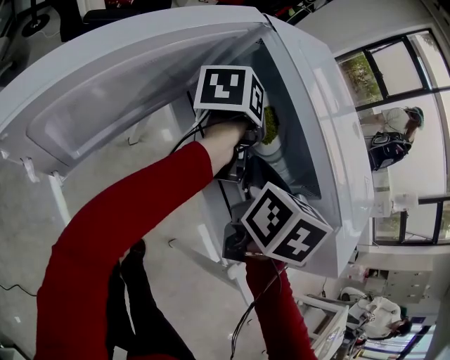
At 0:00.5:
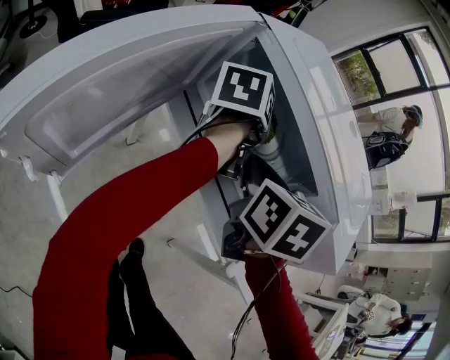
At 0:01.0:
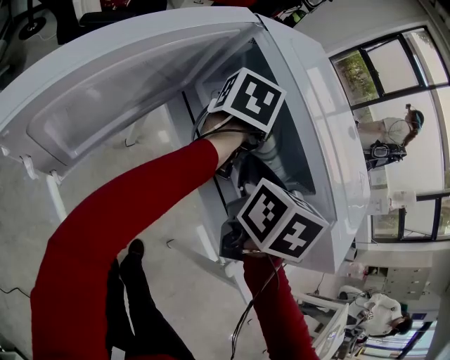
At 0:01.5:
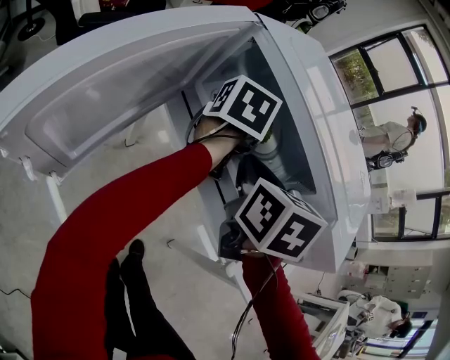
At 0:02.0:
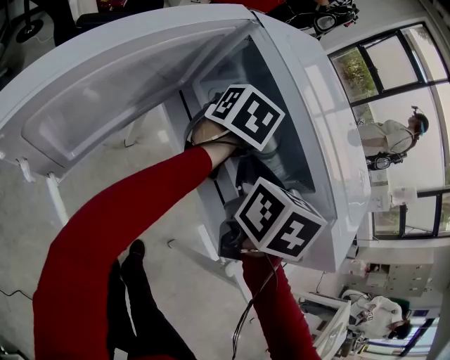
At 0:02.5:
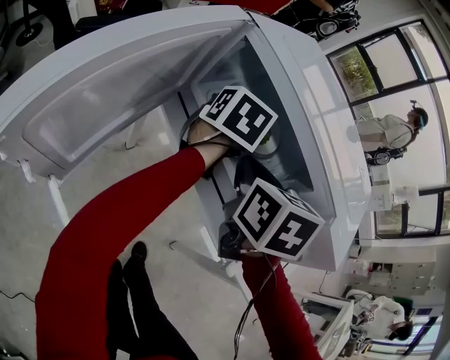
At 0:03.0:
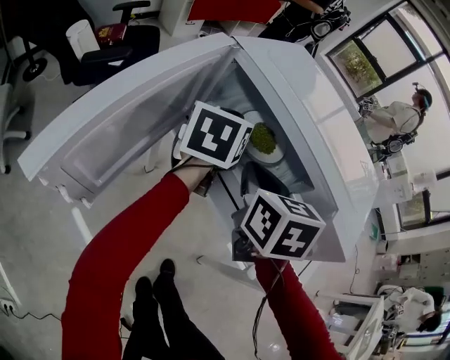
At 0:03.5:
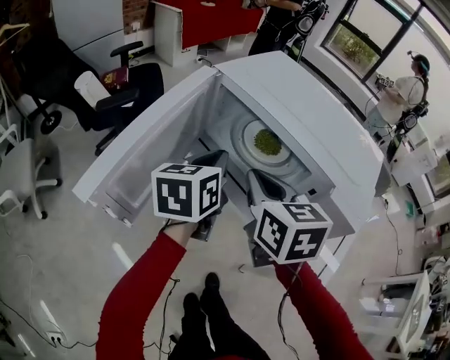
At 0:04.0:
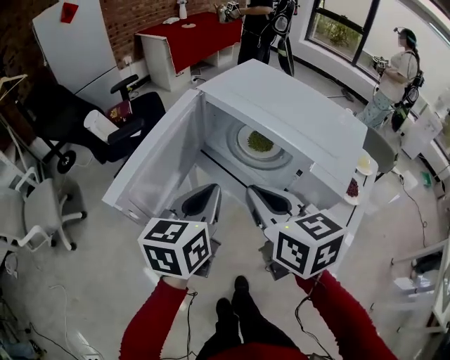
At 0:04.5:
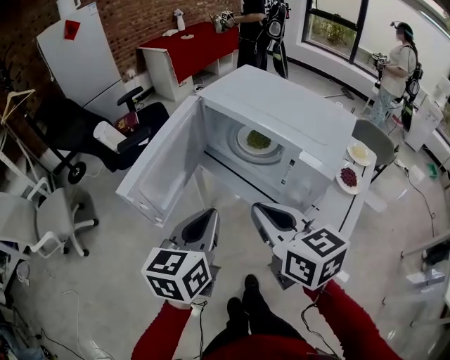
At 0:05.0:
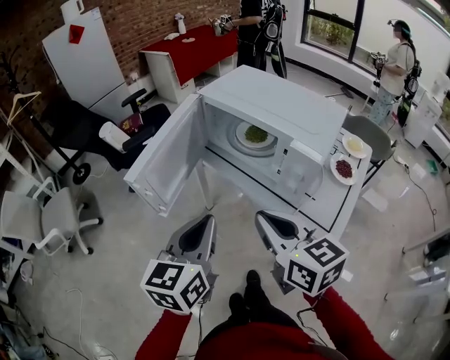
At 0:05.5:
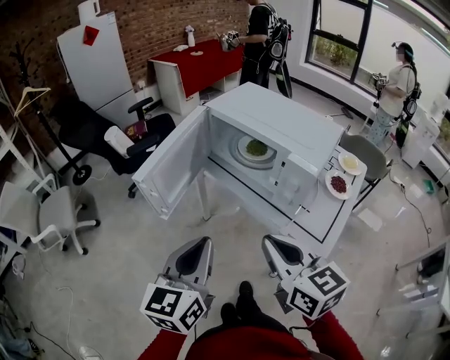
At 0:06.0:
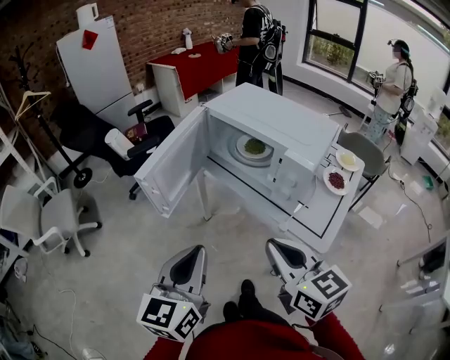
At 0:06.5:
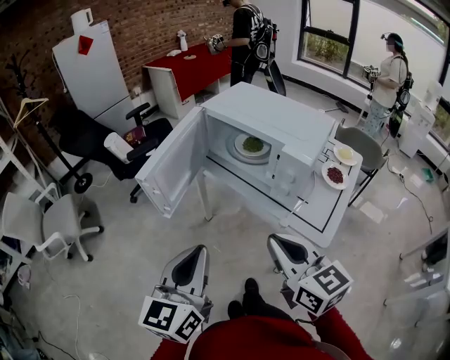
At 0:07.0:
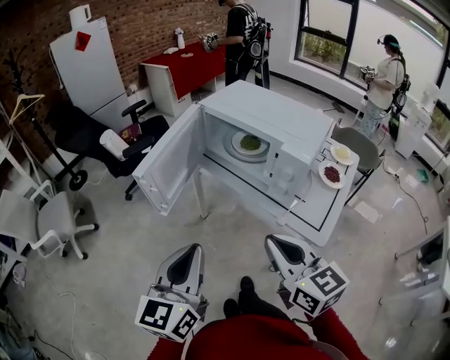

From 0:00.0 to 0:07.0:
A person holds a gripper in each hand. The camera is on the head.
From 0:00.0 to 0:02.0: The left gripper rotates roughly 40 degrees, and opens its fingers.
From 0:02.0 to 0:03.5: The right gripper shifts some 5 cm upward and backward, while the left gripper goes roughly 15 cm backward, to the left and upward, and closes.
From 0:03.5 to 0:05.0: Both grippers travel together backward, roughly 25 cm.
From 0:05.0 to 0:07.0: Both grippers travel together backward, roughly 10 cm.

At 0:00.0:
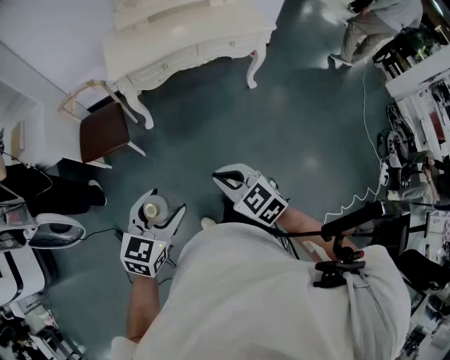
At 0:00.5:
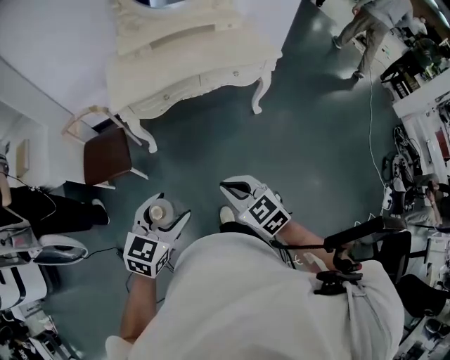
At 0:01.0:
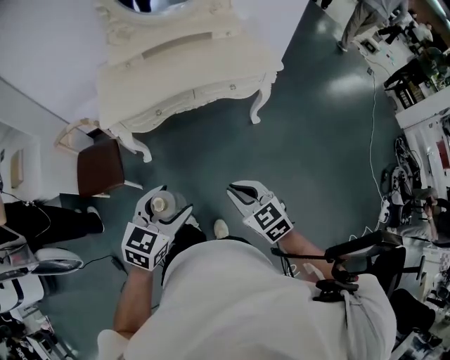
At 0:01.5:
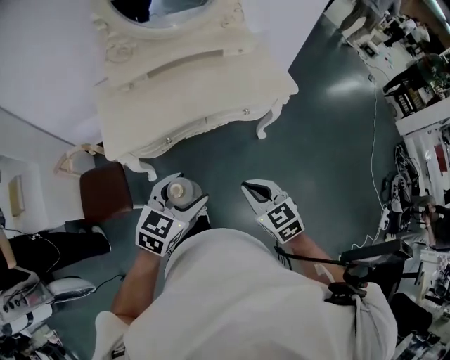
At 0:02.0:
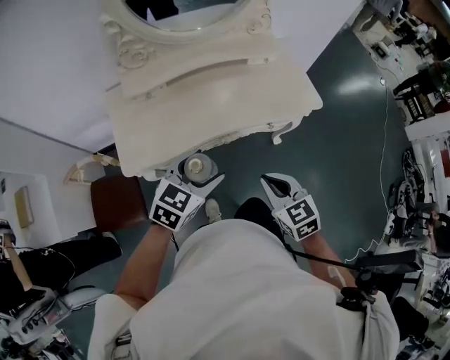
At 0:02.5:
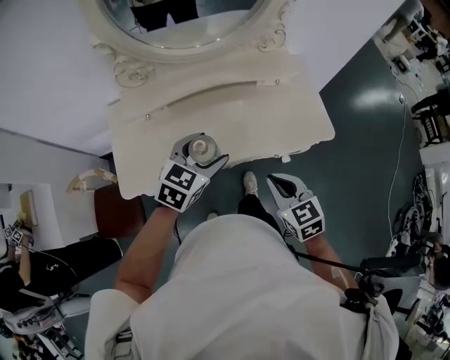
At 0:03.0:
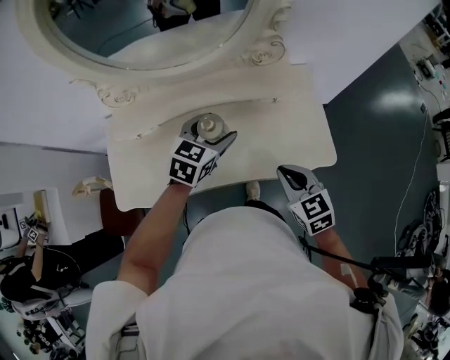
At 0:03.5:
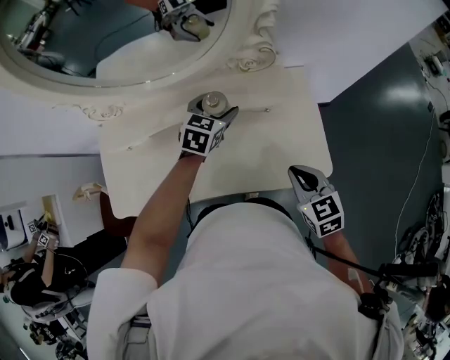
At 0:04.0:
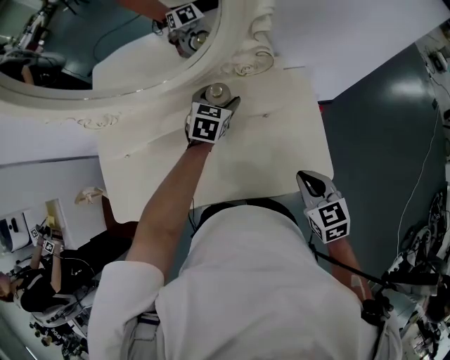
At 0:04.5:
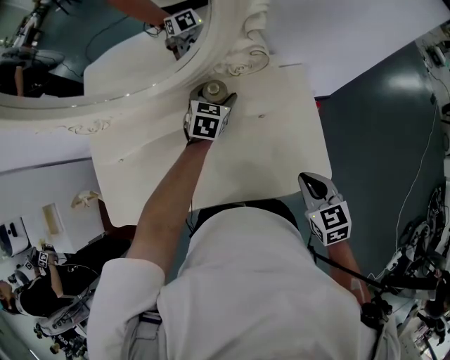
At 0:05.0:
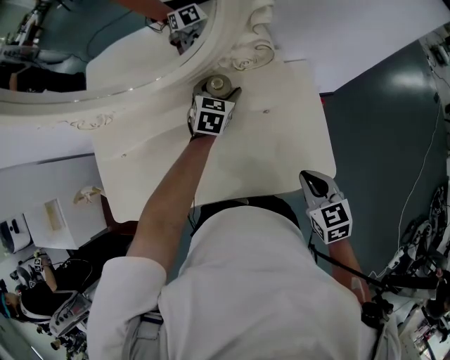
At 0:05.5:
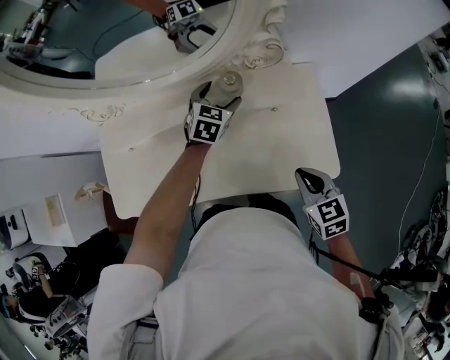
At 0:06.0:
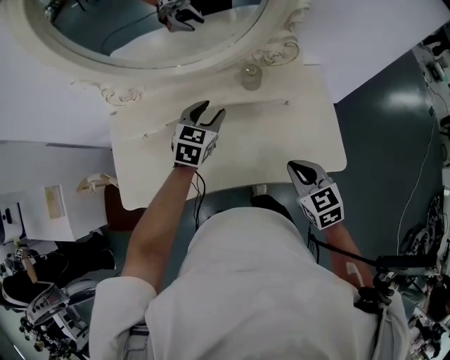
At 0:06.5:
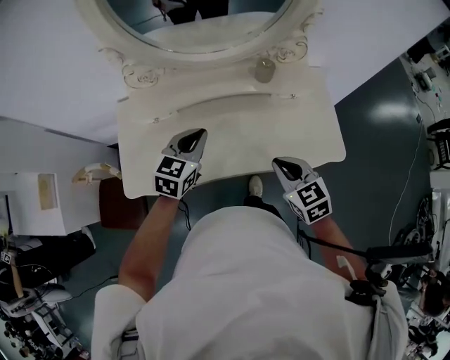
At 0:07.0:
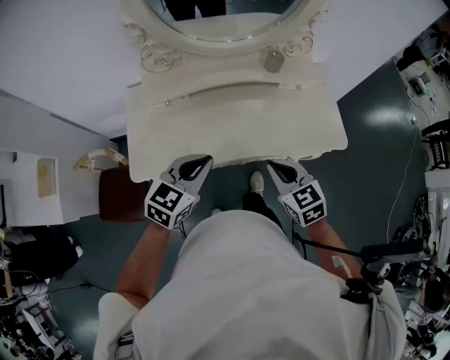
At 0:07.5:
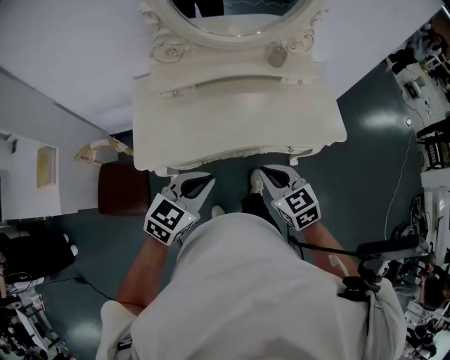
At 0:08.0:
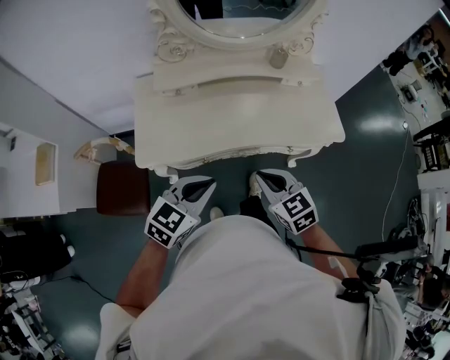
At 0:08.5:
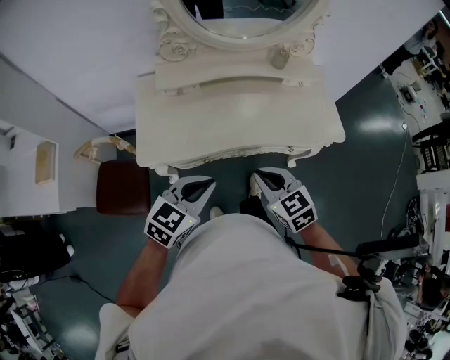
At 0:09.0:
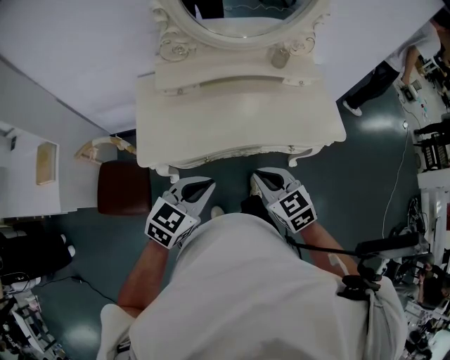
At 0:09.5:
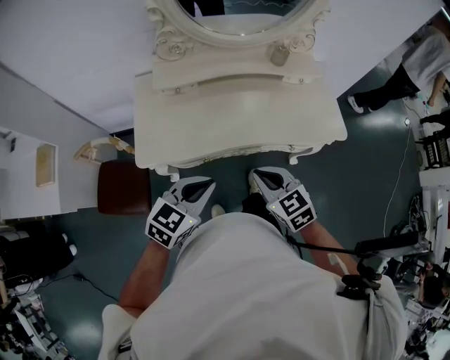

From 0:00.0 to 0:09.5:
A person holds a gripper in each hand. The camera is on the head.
From 0:00.0 to 0:02.0: The pair of grippers is taken forward, roughly 50 cm. The right gripper swivels approximately 20 degrees.
From 0:02.0 to 0:04.0: Both grippers are carried forward and to the right, roughly 50 cm. The left gripper rotates approximately 30 degrees.
From 0:04.0 to 0:05.5: There are only small adjustments of the grippers.
From 0:05.5 to 0:07.5: The left gripper is displaced backward and to the left by roughly 60 cm, rotates roughly 20 degrees, and closes its fingers; the right gripper goes roughly 40 cm to the left and backward.
From 0:07.5 to 0:09.5: The grippers make only small movements.

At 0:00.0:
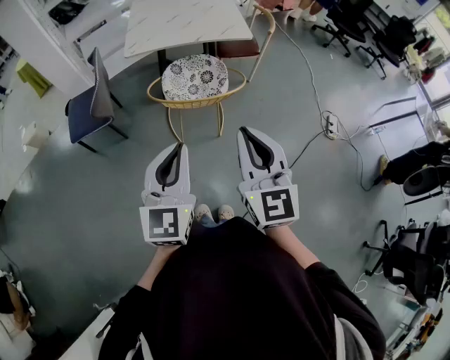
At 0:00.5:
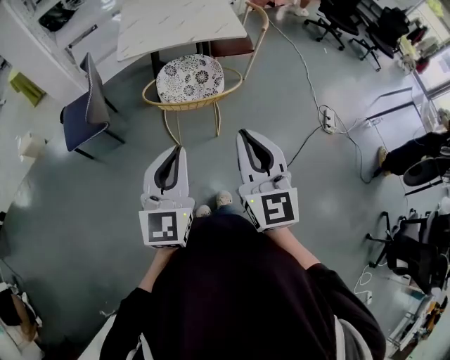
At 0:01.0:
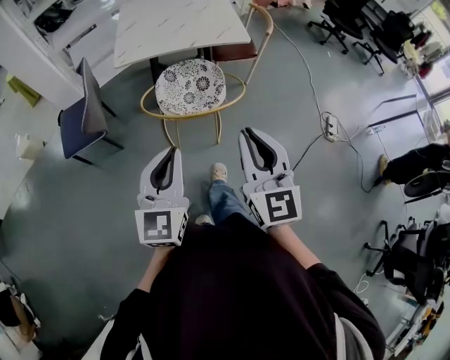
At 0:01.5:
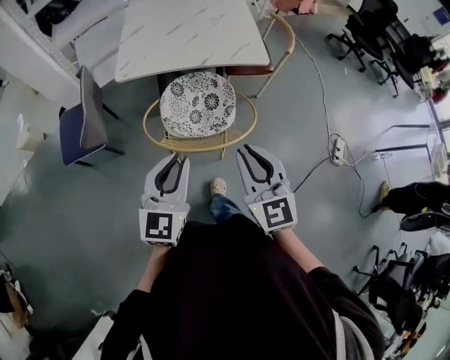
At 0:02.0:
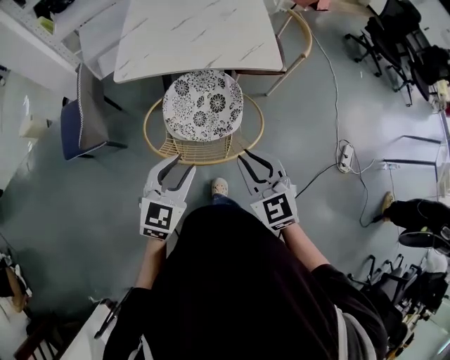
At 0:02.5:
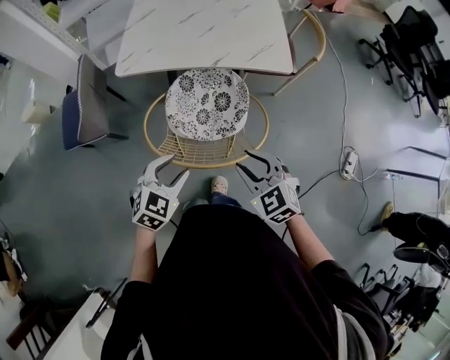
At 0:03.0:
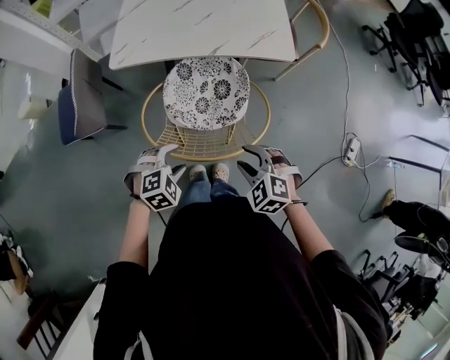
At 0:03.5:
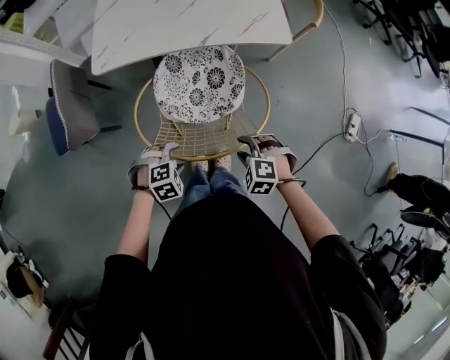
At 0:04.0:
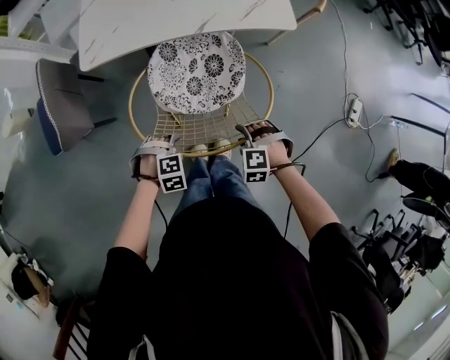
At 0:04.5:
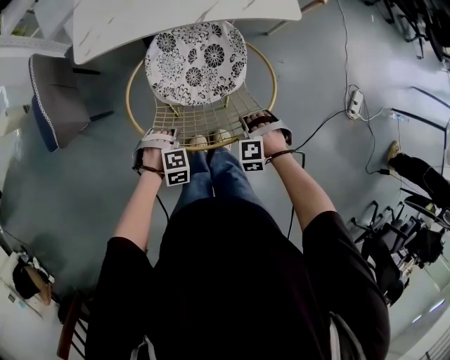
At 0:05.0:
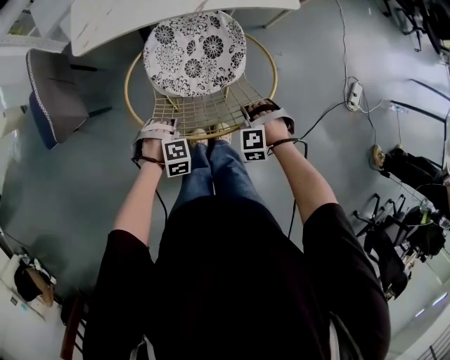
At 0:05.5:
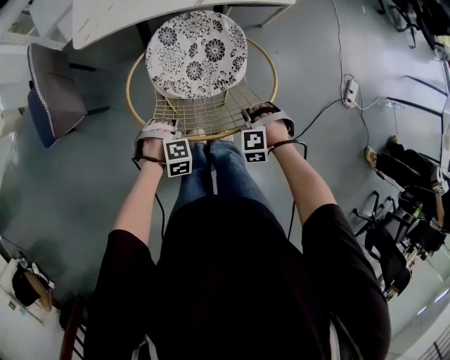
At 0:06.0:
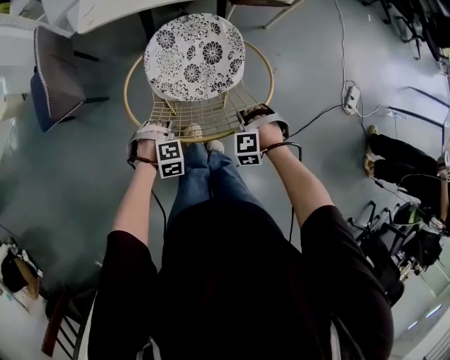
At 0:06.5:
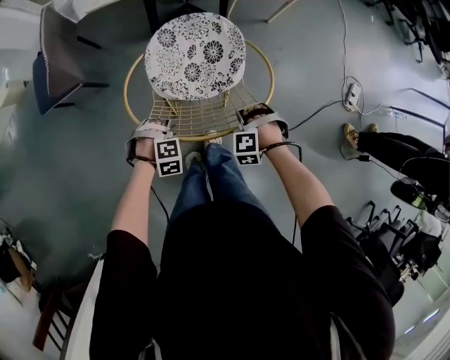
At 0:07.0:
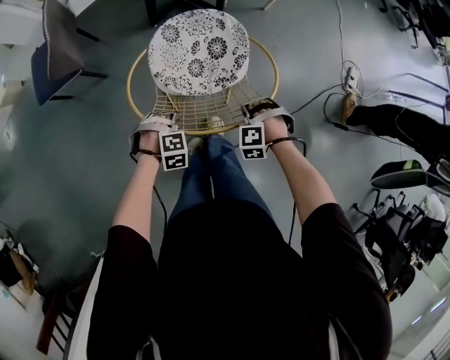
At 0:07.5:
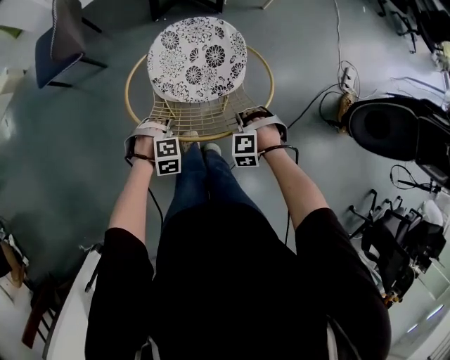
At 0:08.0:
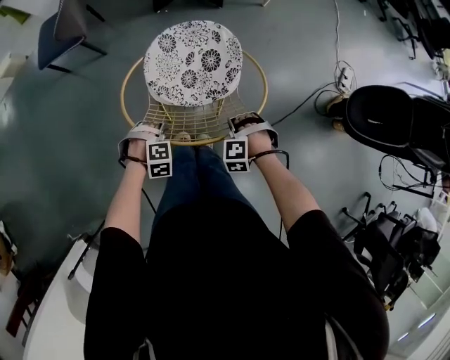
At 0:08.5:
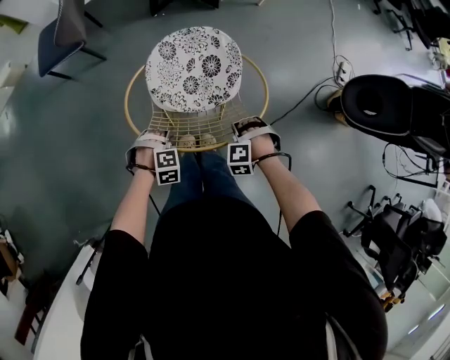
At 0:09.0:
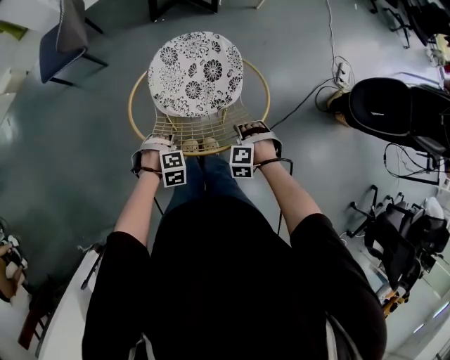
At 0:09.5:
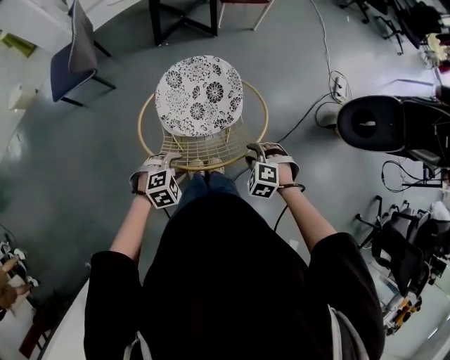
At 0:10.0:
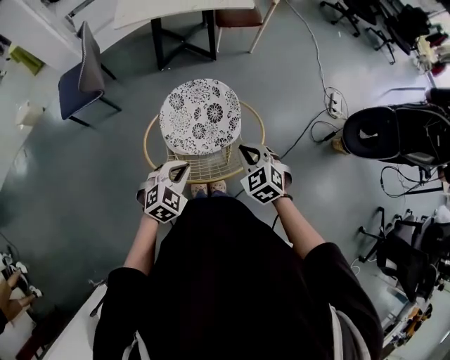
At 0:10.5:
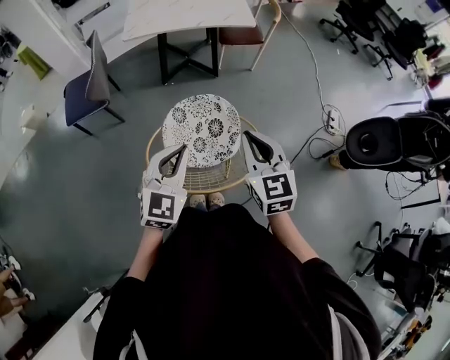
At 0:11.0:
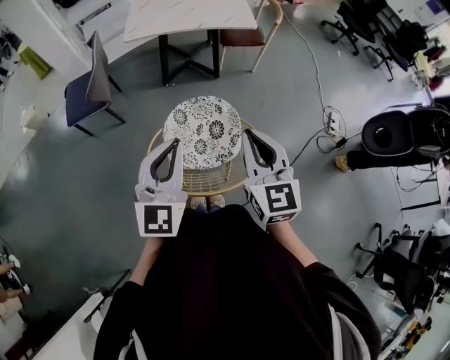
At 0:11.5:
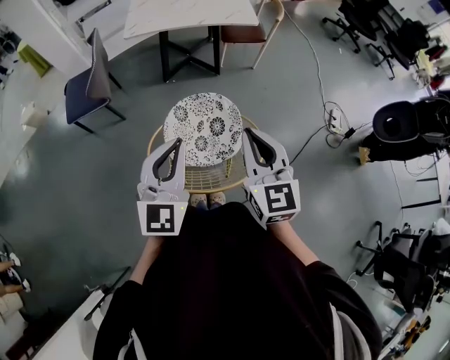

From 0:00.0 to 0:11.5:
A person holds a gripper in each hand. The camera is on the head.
From 0:00.0 to 0:02.0: The grippers both shift forward and downward by about 35 cm. The left gripper turns by some 20 degrees, and opens. The right gripper swivels roughly 30 degrees.
From 0:02.0 to 0:04.0: Both grippers move downward, some 30 cm. The left gripper tilts its fingers some 60 degrees downward, and opens up. Meanwhile the right gripper angles its fingers downward, by roughly 50 degrees, and opens up.
From 0:04.0 to 0:06.0: The right gripper closes its fingers, while the left gripper closes.
From 0:06.0 to 0:07.5: The grippers stay close to where they were, moving slightly.
From 0:07.5 to 0:09.5: Both grippers move upward, roughly 10 cm. The right gripper turns by roughly 30 degrees, and opens its fingers. Meanwhile the left gripper rotates about 20 degrees.
From 0:09.5 to 0:11.5: Both grippers move upward, roughly 35 cm. The left gripper tilts its fingers roughly 60 degrees upward, and closes, while the right gripper tilts its fingers about 60 degrees upward, and closes its fingers.
